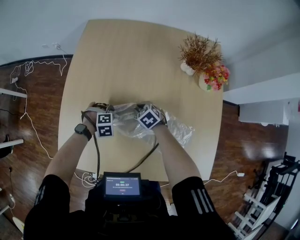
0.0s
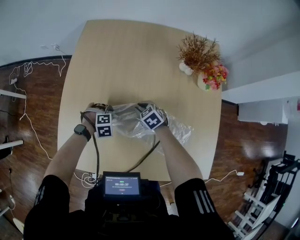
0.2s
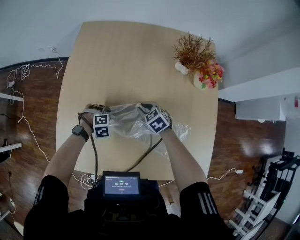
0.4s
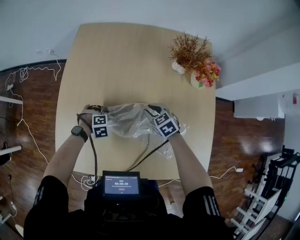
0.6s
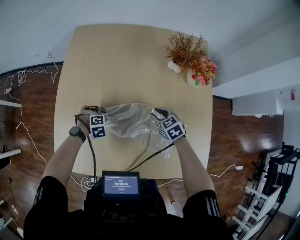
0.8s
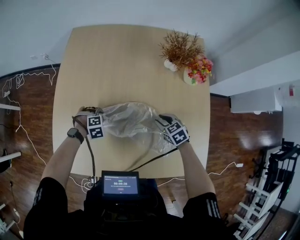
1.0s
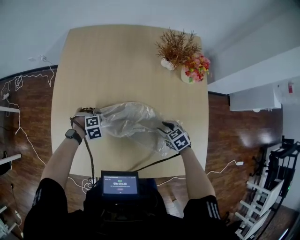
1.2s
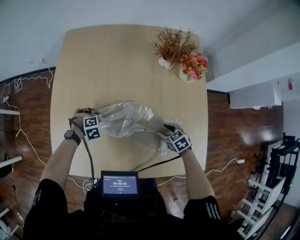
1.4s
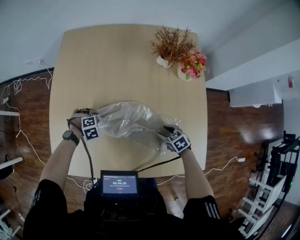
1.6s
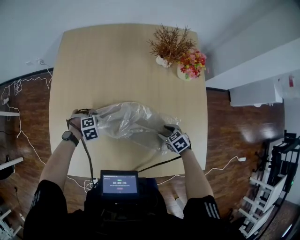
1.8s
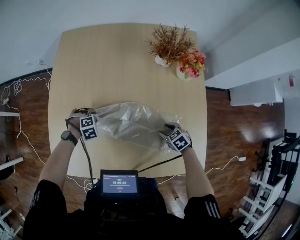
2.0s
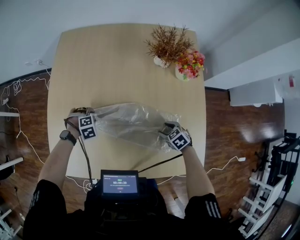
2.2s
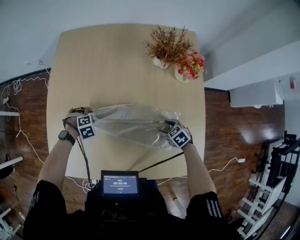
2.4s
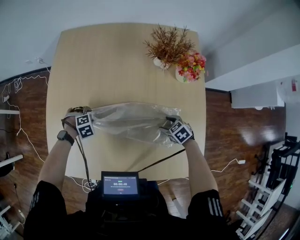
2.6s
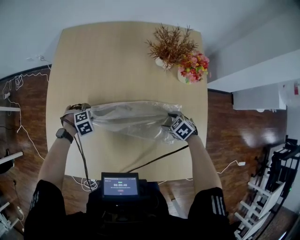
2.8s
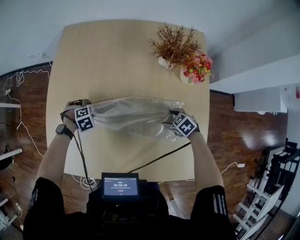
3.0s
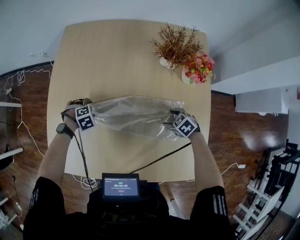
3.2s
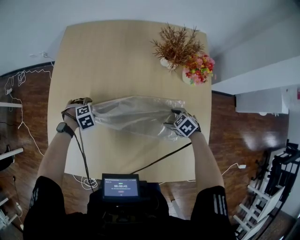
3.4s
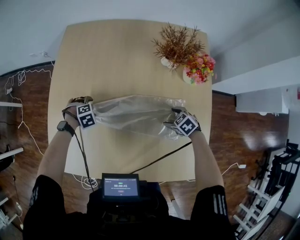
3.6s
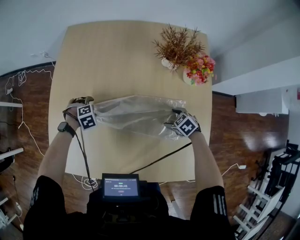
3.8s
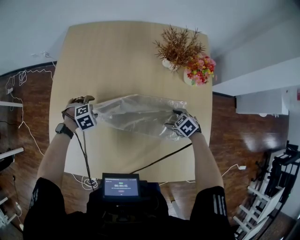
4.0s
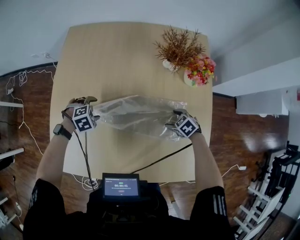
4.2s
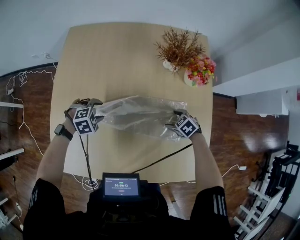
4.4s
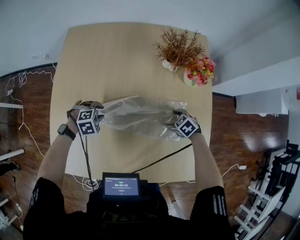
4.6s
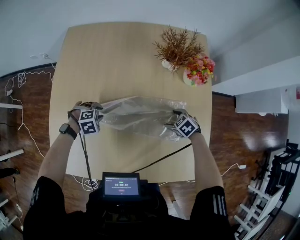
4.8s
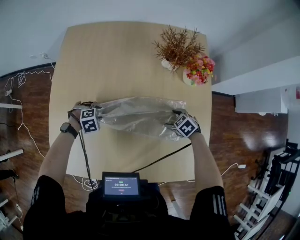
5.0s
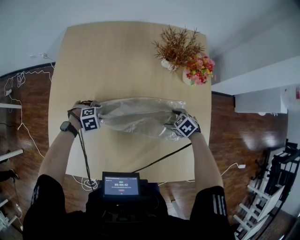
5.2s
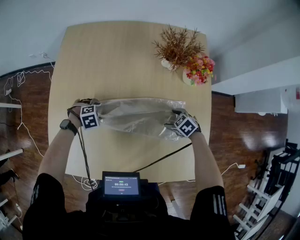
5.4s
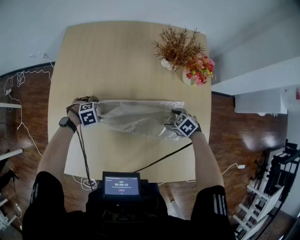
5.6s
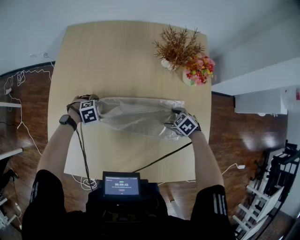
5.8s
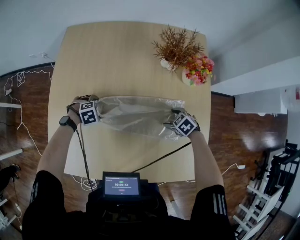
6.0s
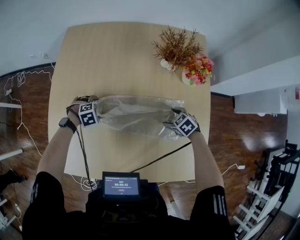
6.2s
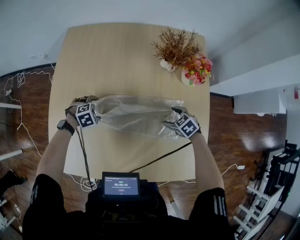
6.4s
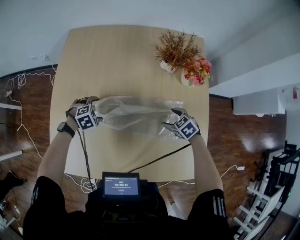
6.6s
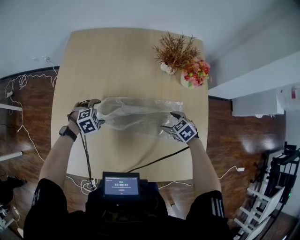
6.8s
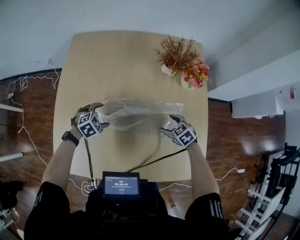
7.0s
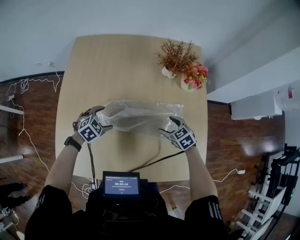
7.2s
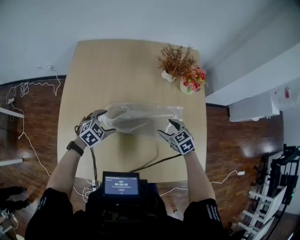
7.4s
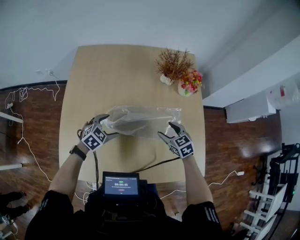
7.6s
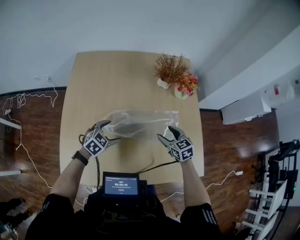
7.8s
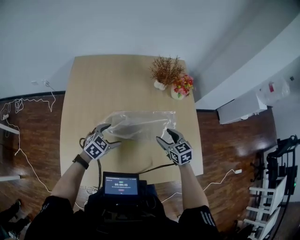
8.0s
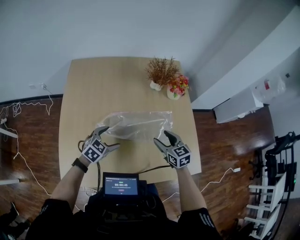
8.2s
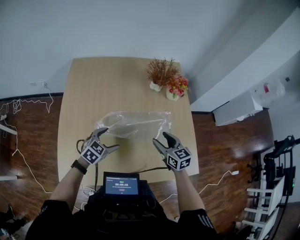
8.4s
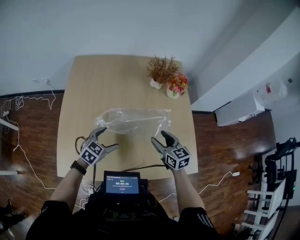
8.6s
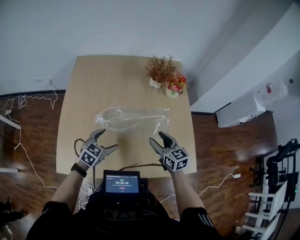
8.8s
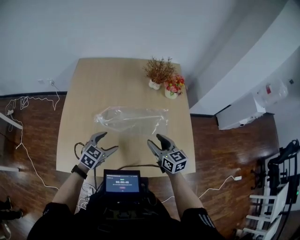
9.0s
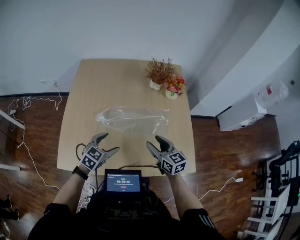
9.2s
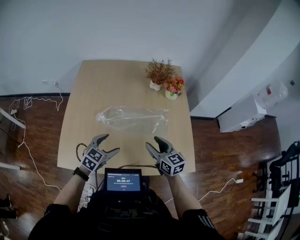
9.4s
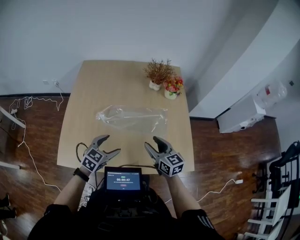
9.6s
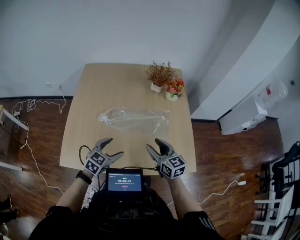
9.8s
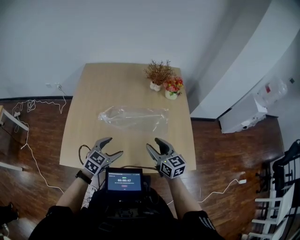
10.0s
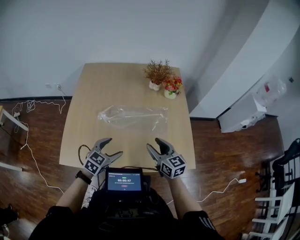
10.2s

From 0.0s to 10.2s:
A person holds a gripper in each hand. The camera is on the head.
From 0.0s to 1.4s: The right gripper moves about 10 cm upward and comes back.
From 1.4s to 3.0s: The right gripper ends up about 10 cm from where it was.
From 3.0s to 4.4s: The left gripper is displaced upward by approximately 10 cm.
From 4.4s to 5.8s: The left gripper goes about 10 cm downward, and opens its fingers.
From 5.8s to 7.2s: The two grippers go about 10 cm upward. The left gripper rotates some 30 degrees, while the right gripper swivels some 20 degrees.
From 7.2s to 8.8s: The left gripper moves backward, upward and to the right, some 15 cm, and rotates some 20 degrees. Meanwhile the right gripper shifts some 20 cm upward and backward, and points its fingers some 30 degrees further upward.
From 8.8s to 10.2s: Both grippers move backward, about 10 cm.

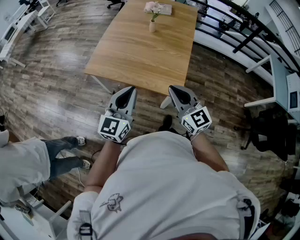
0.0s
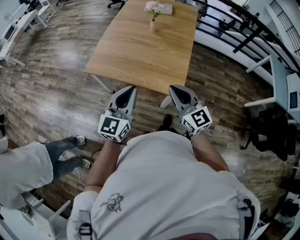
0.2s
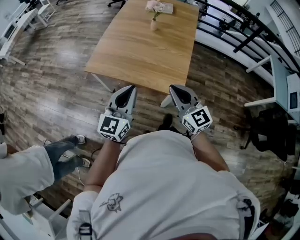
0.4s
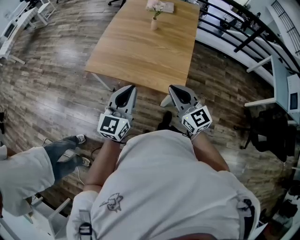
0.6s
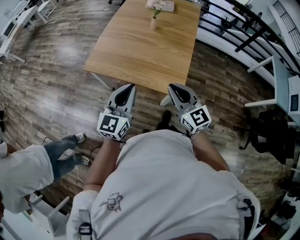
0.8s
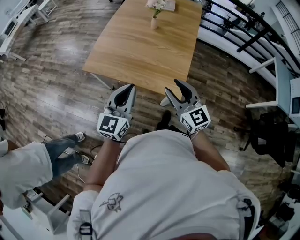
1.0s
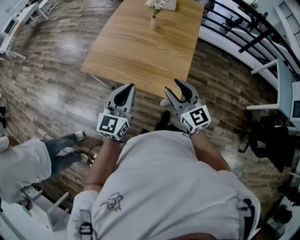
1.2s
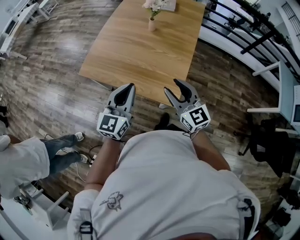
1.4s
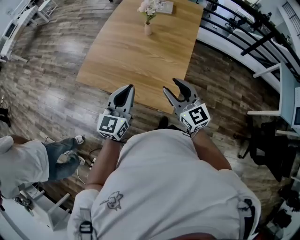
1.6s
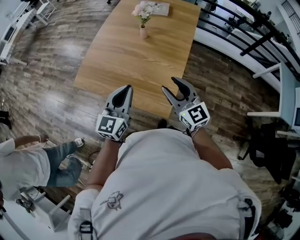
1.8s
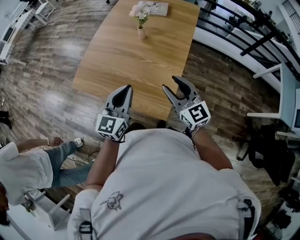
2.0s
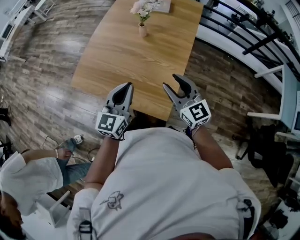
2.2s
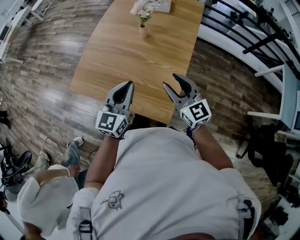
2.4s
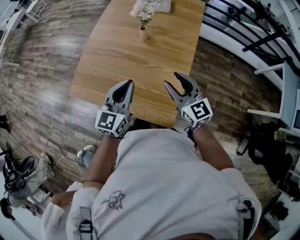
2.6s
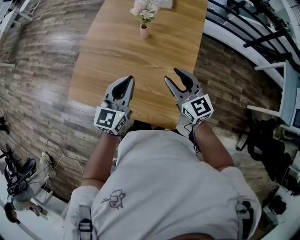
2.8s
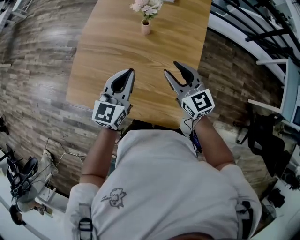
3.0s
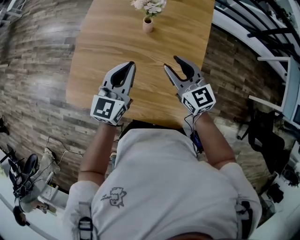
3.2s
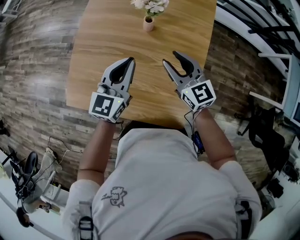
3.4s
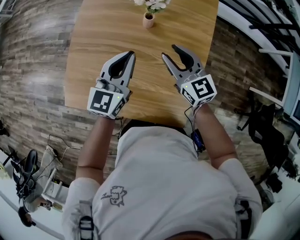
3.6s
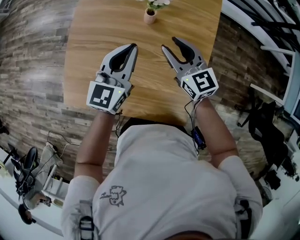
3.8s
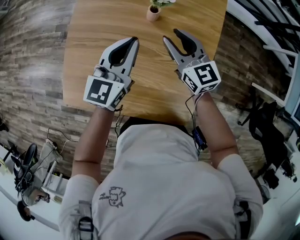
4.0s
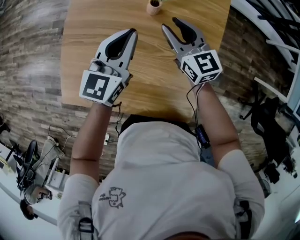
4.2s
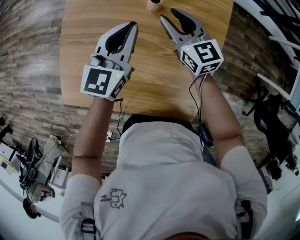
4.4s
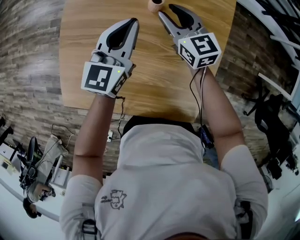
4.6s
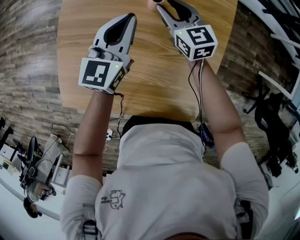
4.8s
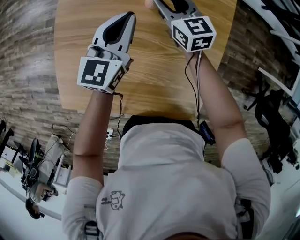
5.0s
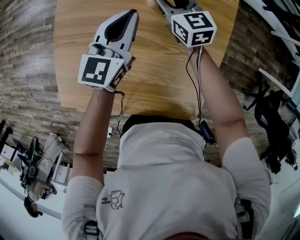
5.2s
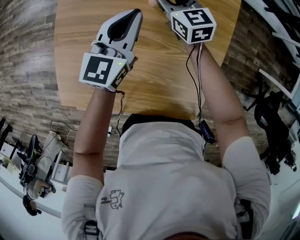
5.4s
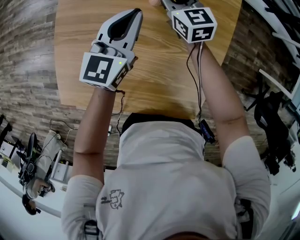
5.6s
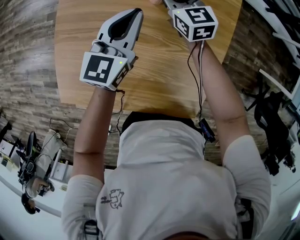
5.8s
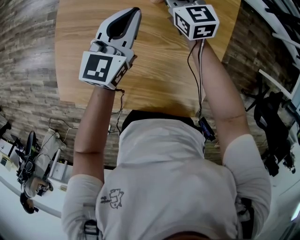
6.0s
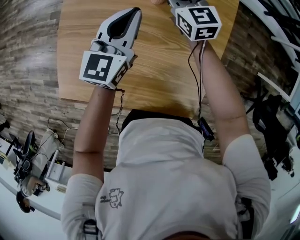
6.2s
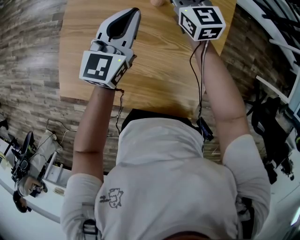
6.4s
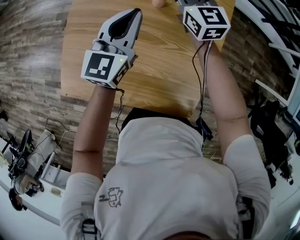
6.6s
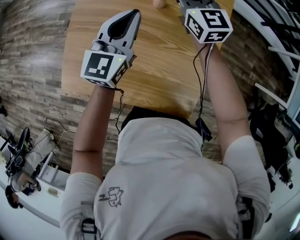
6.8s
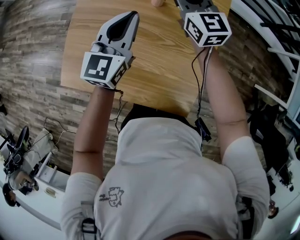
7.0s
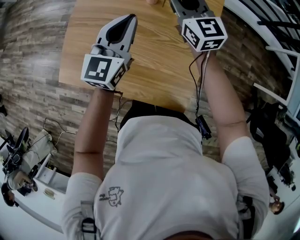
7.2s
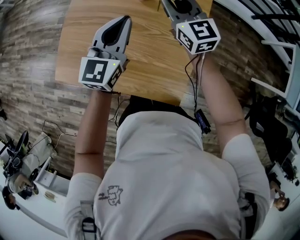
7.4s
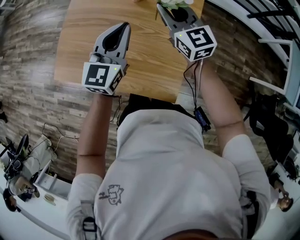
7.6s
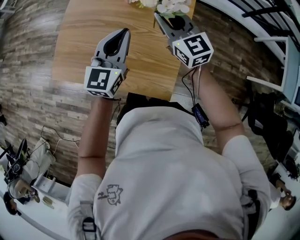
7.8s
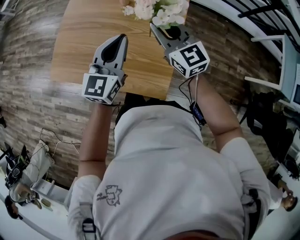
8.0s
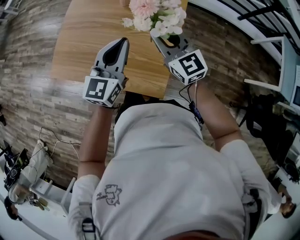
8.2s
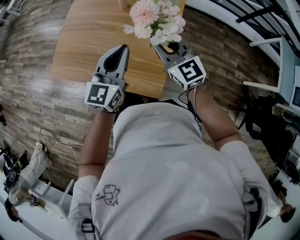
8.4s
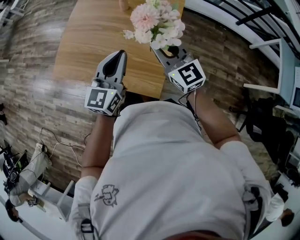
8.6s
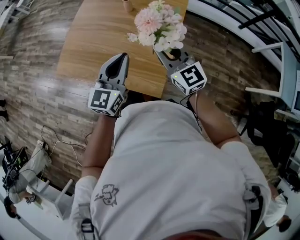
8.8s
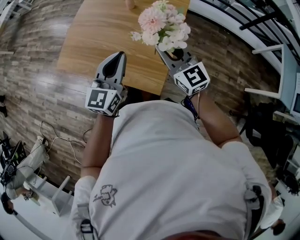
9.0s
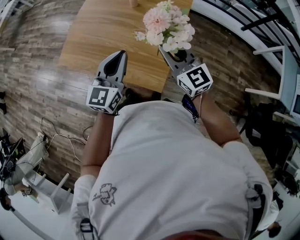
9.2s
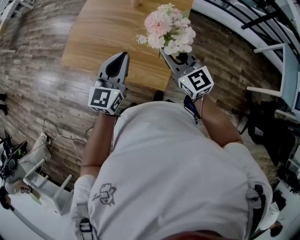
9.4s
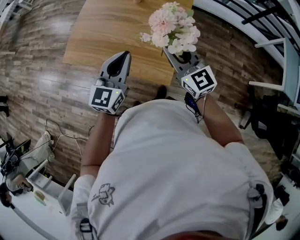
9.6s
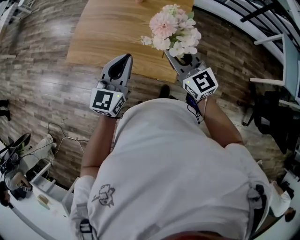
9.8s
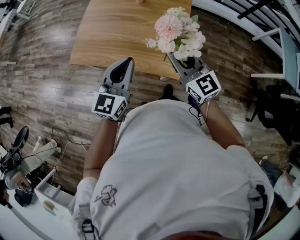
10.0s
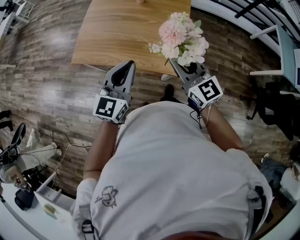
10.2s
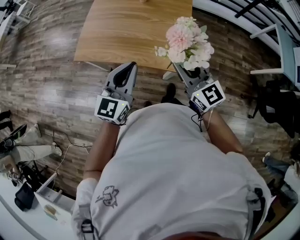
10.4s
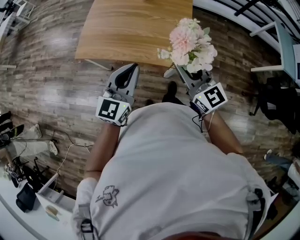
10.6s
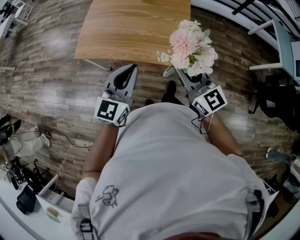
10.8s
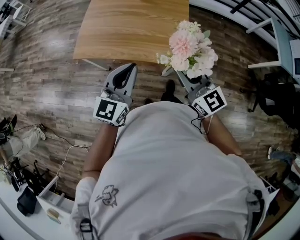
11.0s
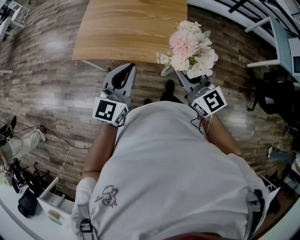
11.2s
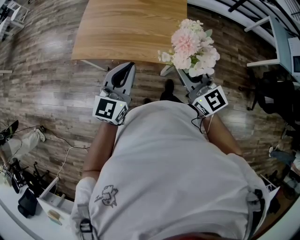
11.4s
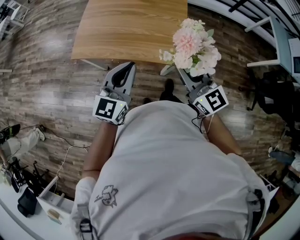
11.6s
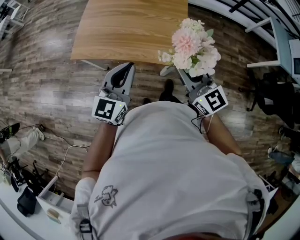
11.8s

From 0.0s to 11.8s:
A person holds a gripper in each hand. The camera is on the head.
From 0.0s to 1.4s: The grippers both shift forward by roughly 10 cm. The right gripper opens.
From 1.4s to 3.0s: The grippers both shift forward by approximately 25 cm.
From 3.0s to 4.4s: Both grippers move forward and downward, about 20 cm.
From 4.4s to 6.0s: The right gripper heads forward, covering about 5 cm, and closes up.
From 6.0s to 7.4s: The left gripper shifts approximately 15 cm backward and upward. Meanwhile the right gripper heads upward and backward, covering roughly 20 cm.
From 7.4s to 8.8s: The grippers both shift backward by some 20 cm.
From 8.8s to 10.4s: Both grippers travel together backward and to the left, about 20 cm.
From 10.4s to 11.8s: There are only small adjustments of the grippers.

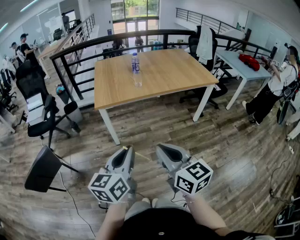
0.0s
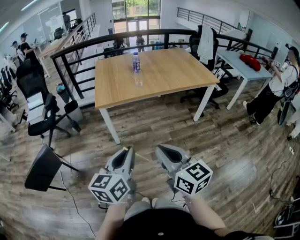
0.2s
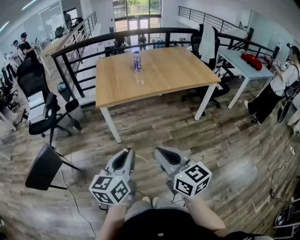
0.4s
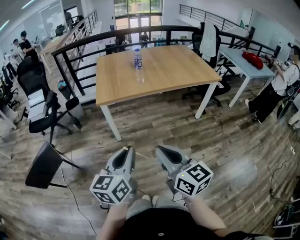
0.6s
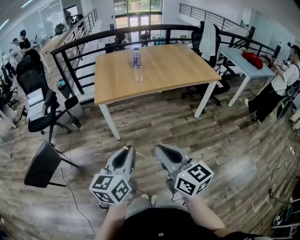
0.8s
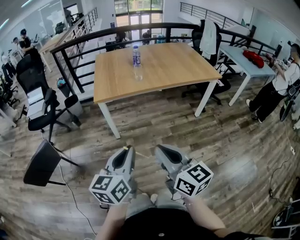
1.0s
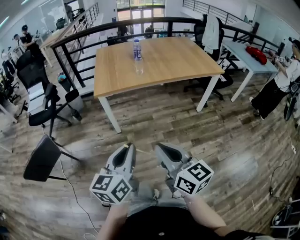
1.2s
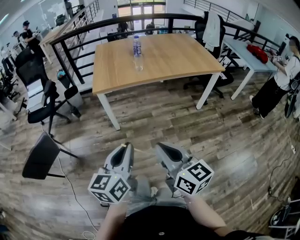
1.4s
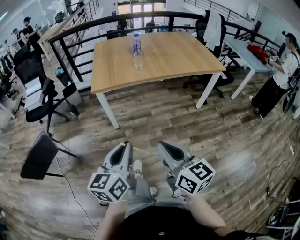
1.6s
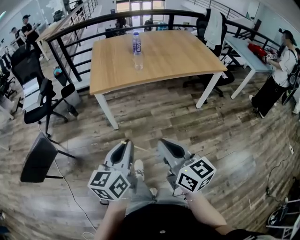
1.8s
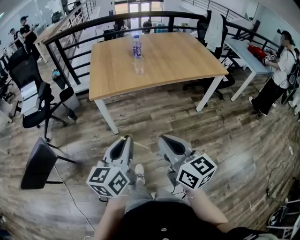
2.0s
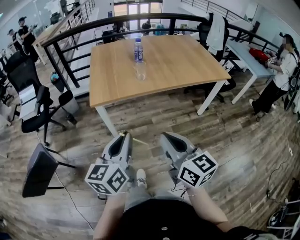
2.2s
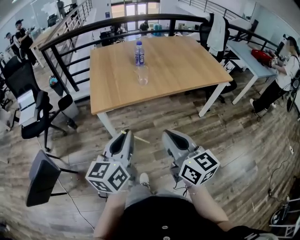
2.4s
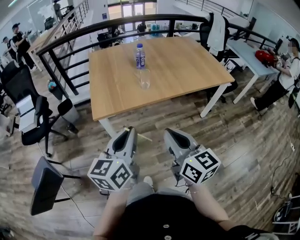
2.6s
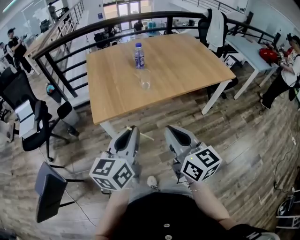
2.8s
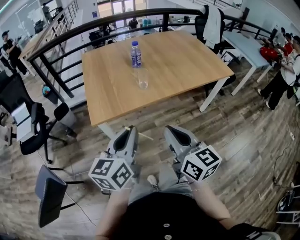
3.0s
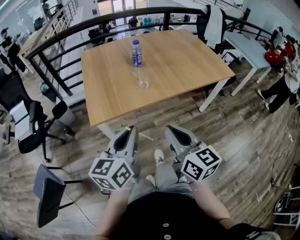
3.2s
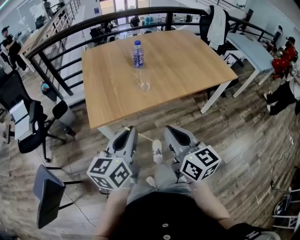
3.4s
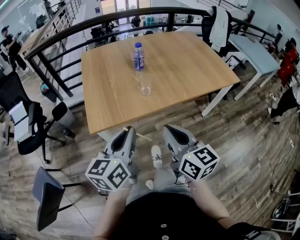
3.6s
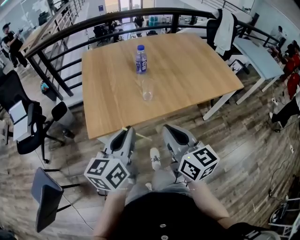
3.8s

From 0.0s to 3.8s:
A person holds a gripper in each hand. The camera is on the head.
From 0.0s to 1.2s: The grippers make only small movements.
From 1.2s to 2.6s: Both grippers move forward, approximately 30 cm.
From 2.6s to 3.8s: Both grippers move forward, approximately 15 cm.
